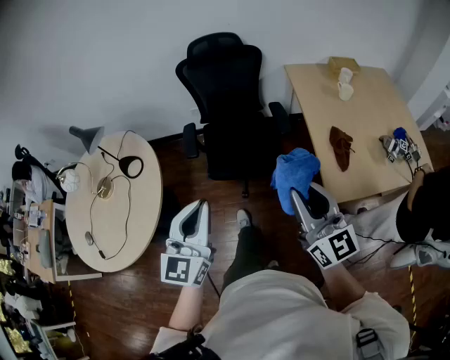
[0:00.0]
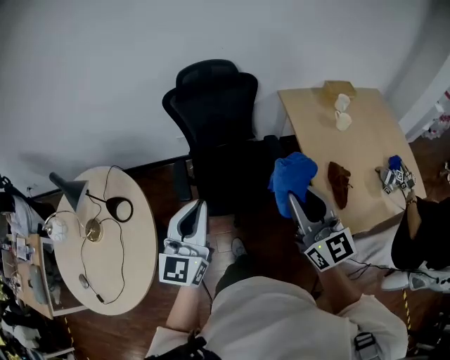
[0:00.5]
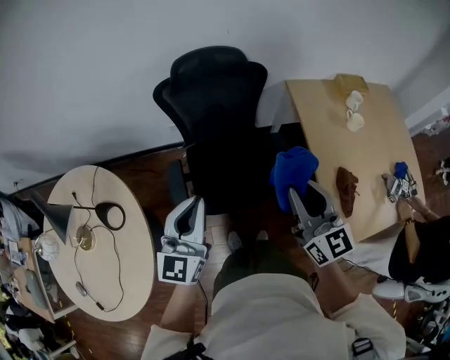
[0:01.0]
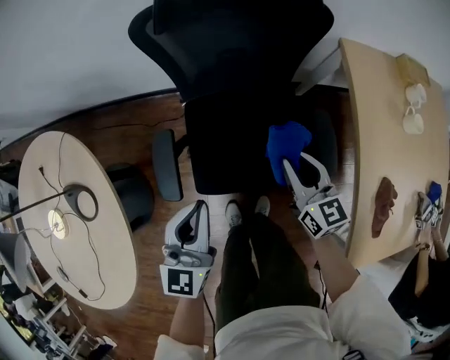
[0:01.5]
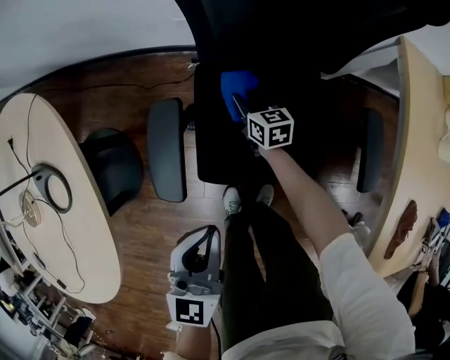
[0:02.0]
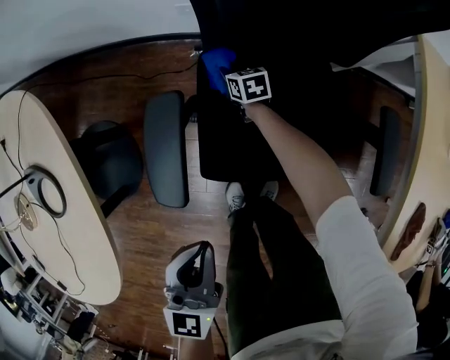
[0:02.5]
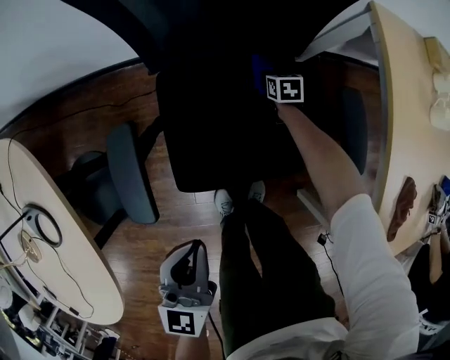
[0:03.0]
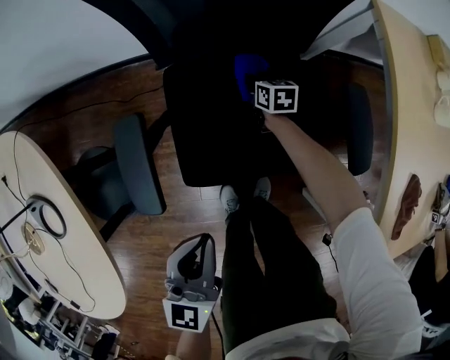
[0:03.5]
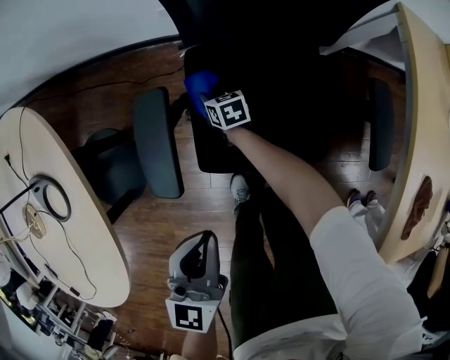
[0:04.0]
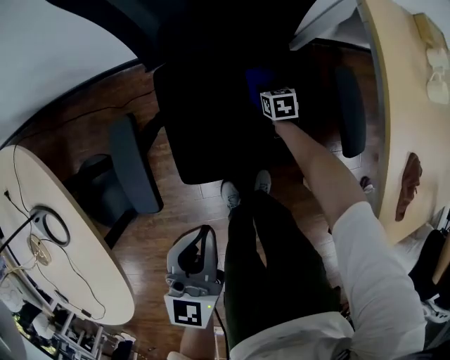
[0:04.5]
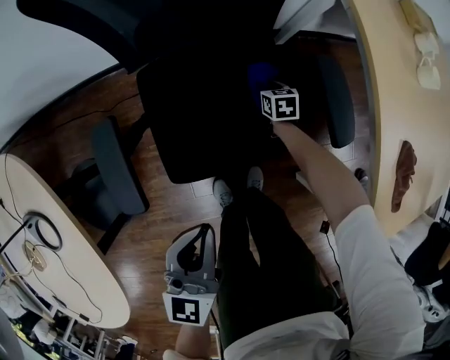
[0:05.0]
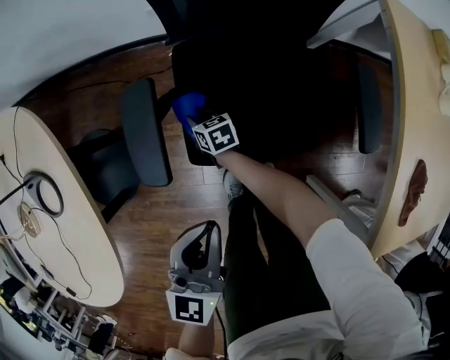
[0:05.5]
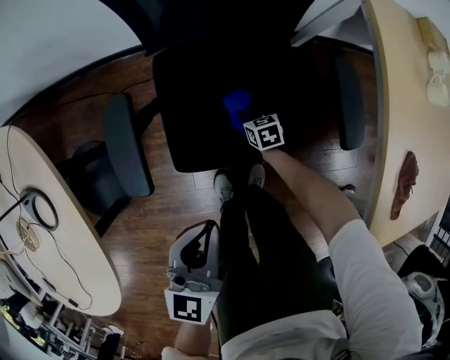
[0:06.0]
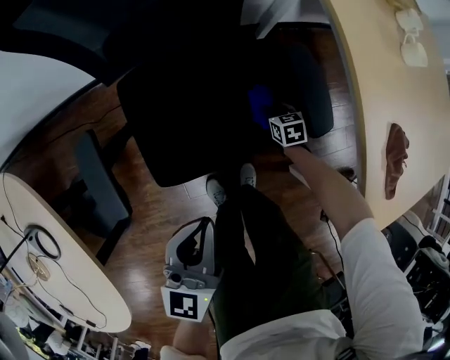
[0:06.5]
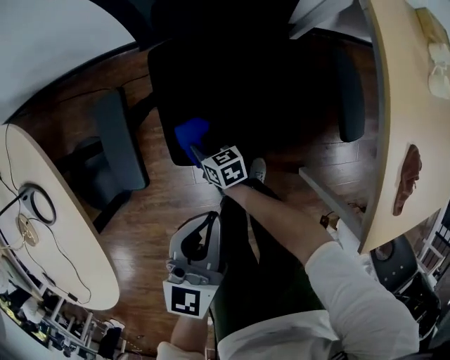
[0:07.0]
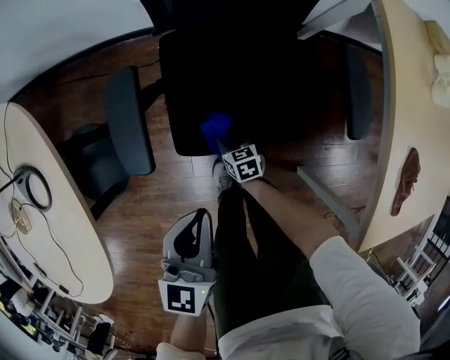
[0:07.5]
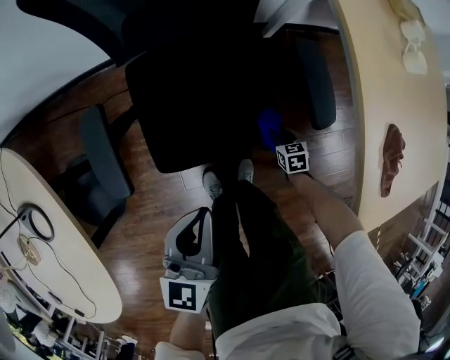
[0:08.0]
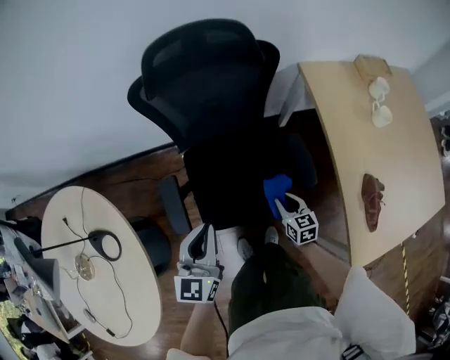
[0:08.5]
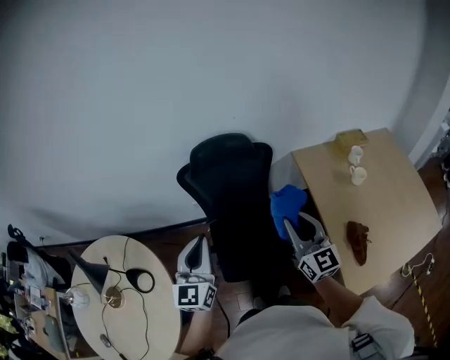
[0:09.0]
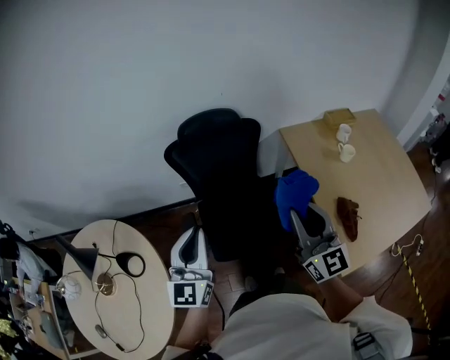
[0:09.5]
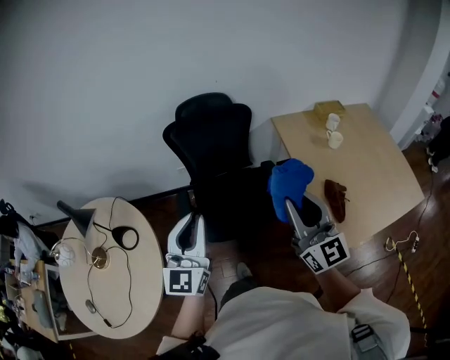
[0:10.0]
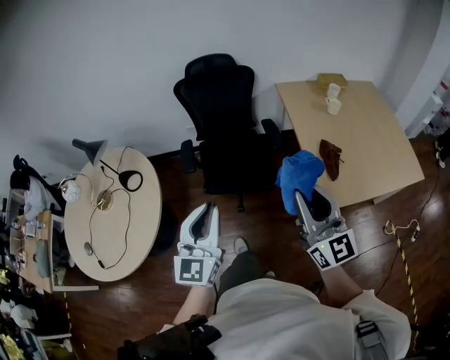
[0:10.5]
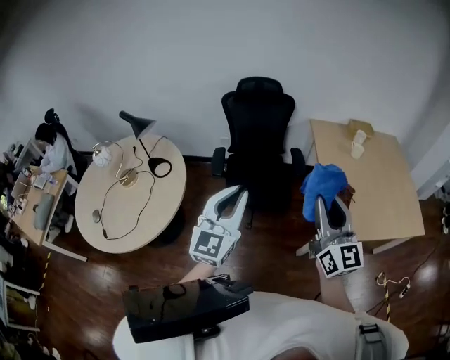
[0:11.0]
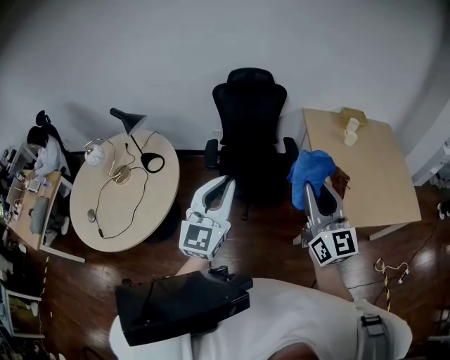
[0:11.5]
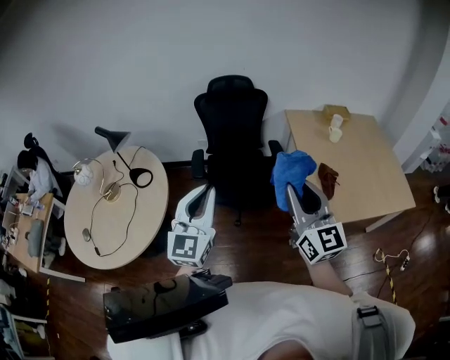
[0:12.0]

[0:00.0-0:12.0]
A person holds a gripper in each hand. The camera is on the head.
0:00.0 to 0:02.0: Both grippers are carried forward, some 70 cm. The left gripper heads downward, covering roughly 50 cm, while the right gripper heads downward, covering approximately 80 cm, and tilts its fingers about 50 degrees downward.
0:02.0 to 0:04.0: The right gripper moves left and right over approximately 30 cm, changing direction 2 times.
0:04.0 to 0:06.0: The right gripper swings left and right, roughly 35 cm each way, with 2 reversals. Meanwhile the left gripper goes left and right, some 10 cm each way, reversing 2 times.
0:06.0 to 0:08.0: The right gripper swings left and right, approximately 35 cm each way, with 2 reversals; the left gripper swings left and right, roughly 10 cm each way, with 2 reversals.
0:08.0 to 0:10.0: The two grippers travel together, backward, roughly 40 cm. The left gripper heads upward, covering roughly 50 cm, and rotates roughly 30 degrees. Meanwhile the right gripper goes approximately 1 m upward, and points its fingers about 80 degrees further upward.
0:10.0 to 0:12.0: Both grippers move backward, roughly 30 cm.

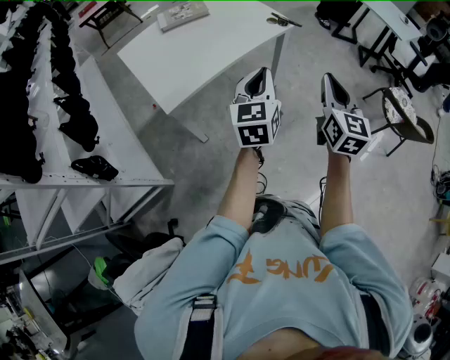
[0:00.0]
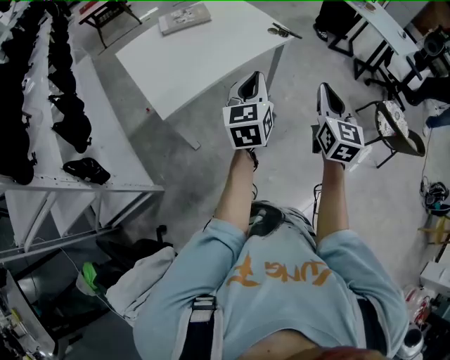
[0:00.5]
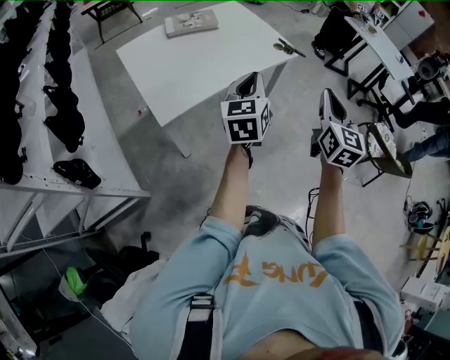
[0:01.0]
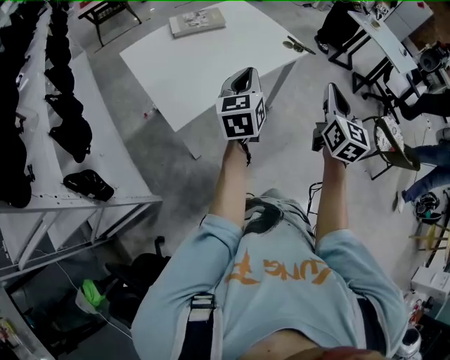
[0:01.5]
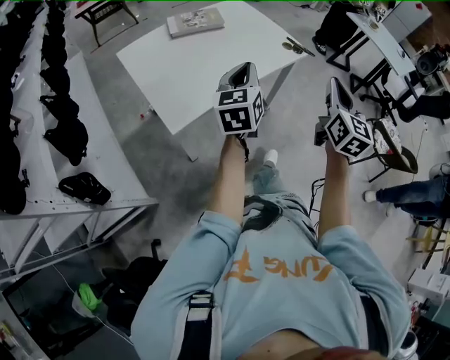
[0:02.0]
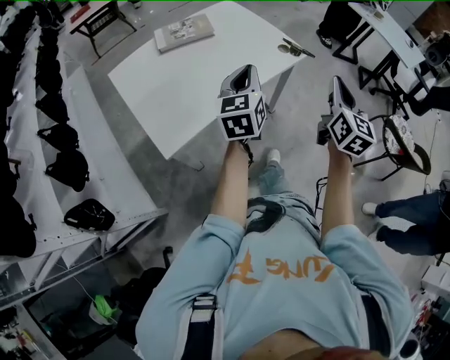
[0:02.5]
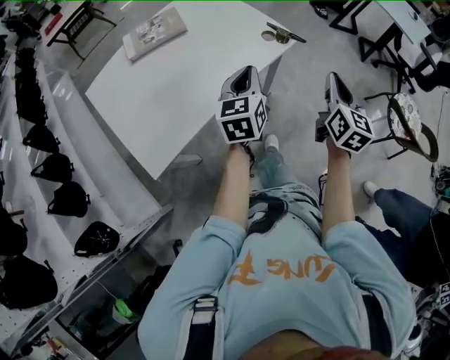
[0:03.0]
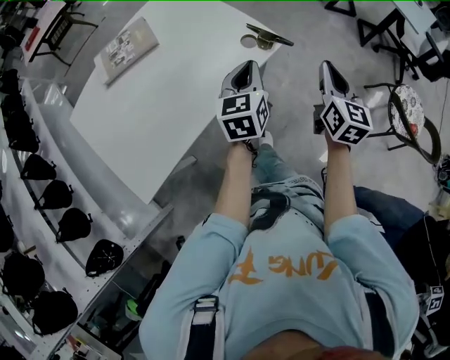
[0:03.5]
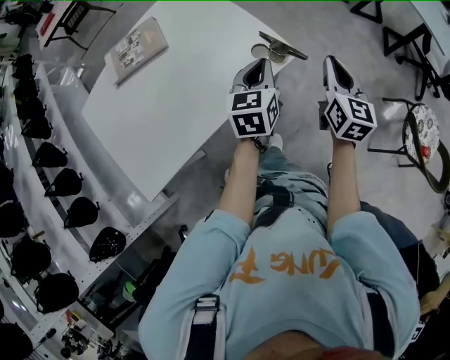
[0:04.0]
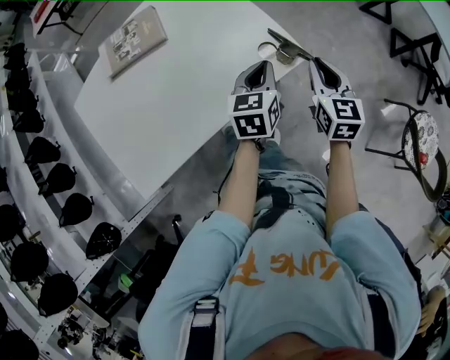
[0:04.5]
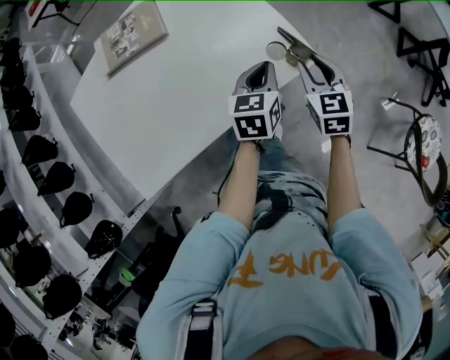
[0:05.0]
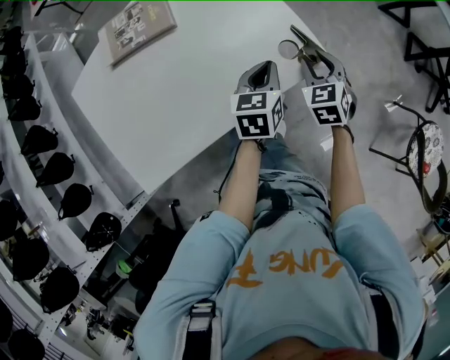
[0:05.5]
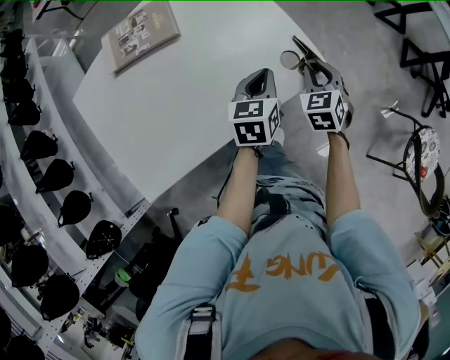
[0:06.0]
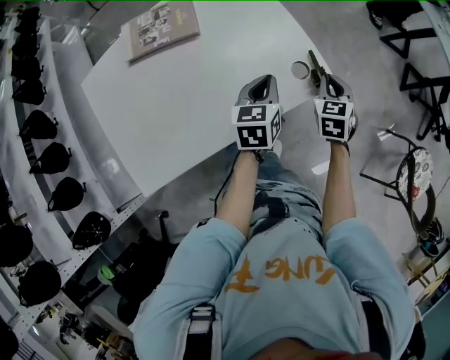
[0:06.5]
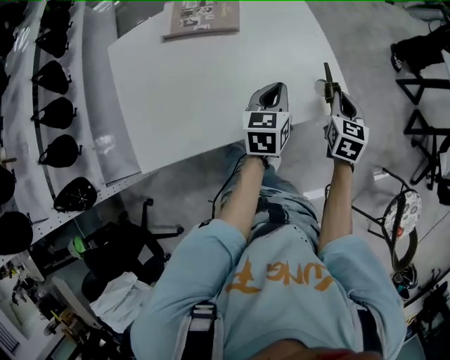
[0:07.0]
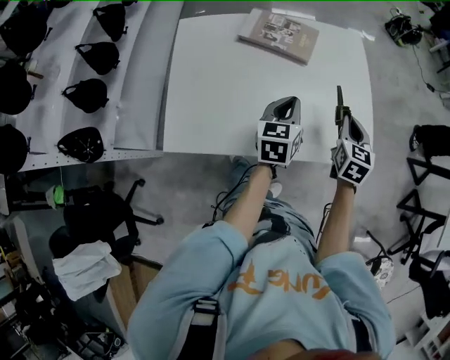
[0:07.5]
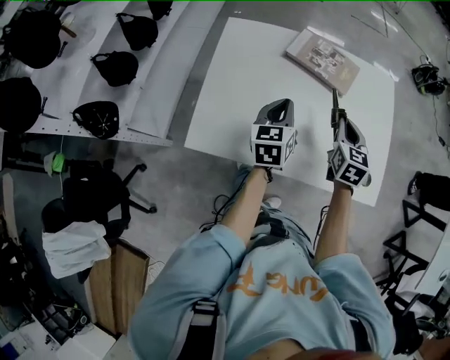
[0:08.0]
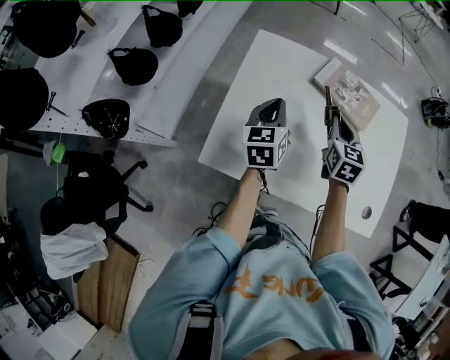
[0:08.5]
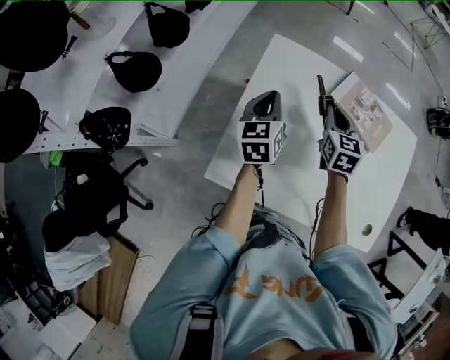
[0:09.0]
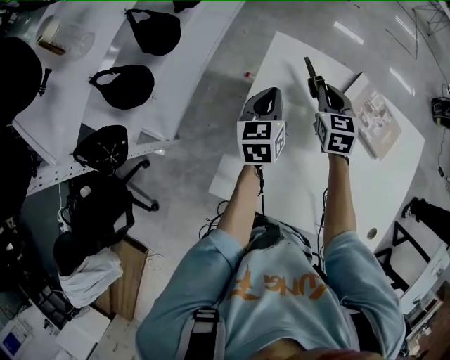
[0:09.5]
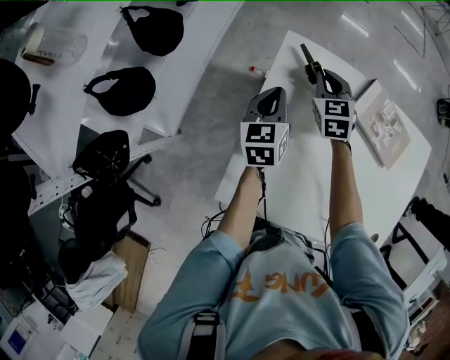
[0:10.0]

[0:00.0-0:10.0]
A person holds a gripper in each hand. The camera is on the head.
0:00.0 to 0:02.0: The left gripper travels to the left and forward by roughly 20 cm; the right gripper shifts roughly 15 cm forward and to the left.
0:02.0 to 0:04.0: The two grippers travel together, forward and to the right, some 40 cm. The left gripper changes its angle by roughly 20 degrees.
0:04.0 to 0:06.0: The left gripper goes some 10 cm downward and to the left. The right gripper heads downward, to the left and forward, covering some 20 cm, and turns by roughly 50 degrees.
0:06.0 to 0:08.0: The right gripper ends up some 35 cm from where it was, and turns by approximately 30 degrees. The left gripper ends up roughly 35 cm from where it was, and rotates about 50 degrees.
0:08.0 to 0:10.0: The left gripper heads to the left and forward, covering about 30 cm; the right gripper moves forward and to the left, approximately 40 cm, and rotates some 30 degrees.

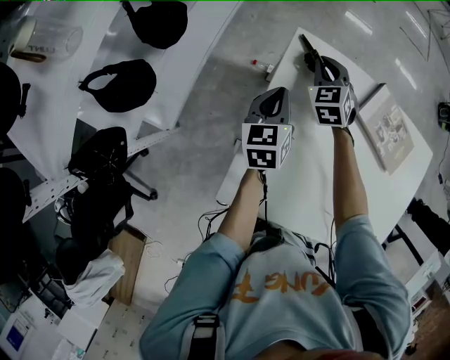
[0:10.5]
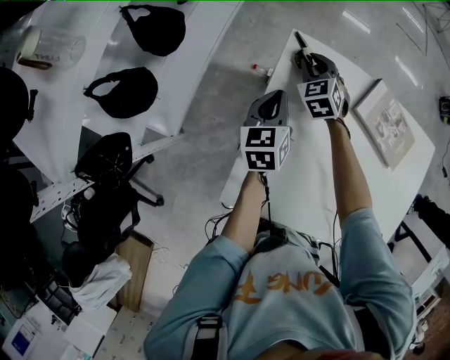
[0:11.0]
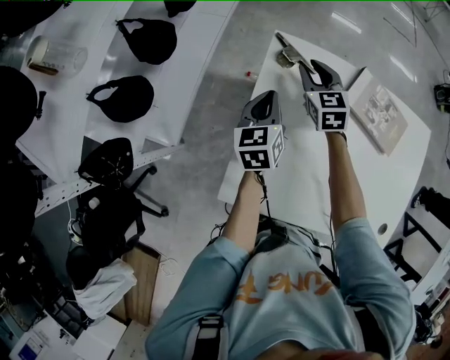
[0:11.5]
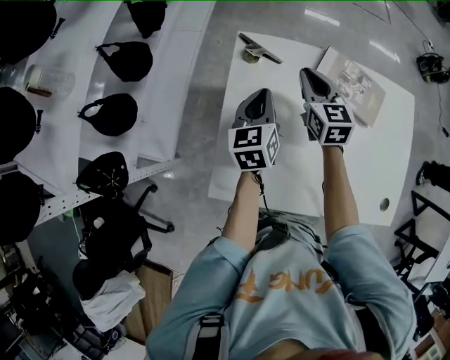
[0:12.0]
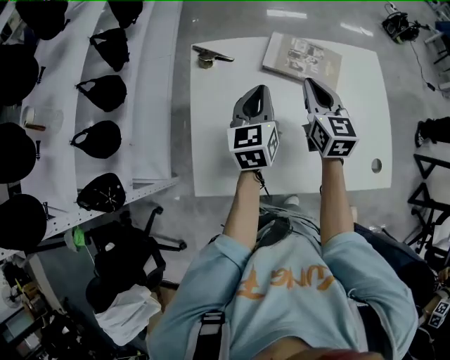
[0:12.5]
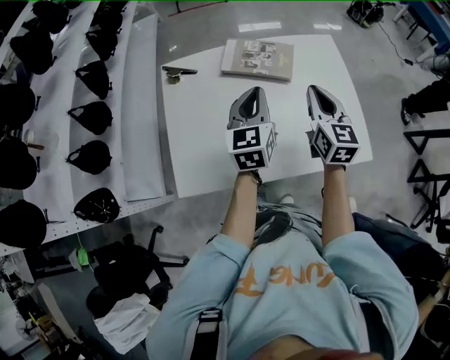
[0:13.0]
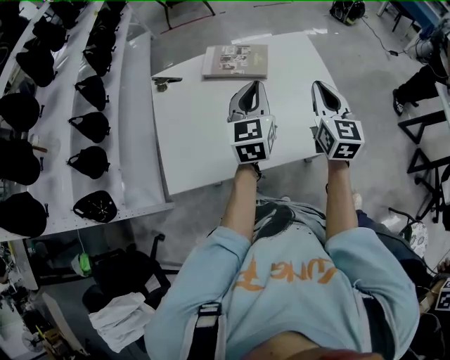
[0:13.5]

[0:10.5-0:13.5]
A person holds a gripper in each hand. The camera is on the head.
0:10.5 to 0:12.0: The right gripper is displaced backward, upward and to the right by roughly 20 cm, and rotates some 40 degrees, while the left gripper travels to the right, upward and backward by about 10 cm.
0:12.0 to 0:13.5: The left gripper travels to the right, backward and upward by about 40 cm, and rotates roughly 30 degrees, while the right gripper is displaced to the right and backward by some 50 cm, and turns by approximately 30 degrees.

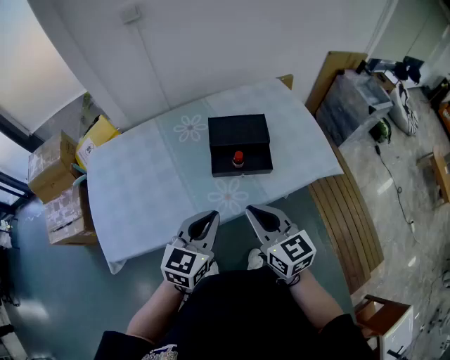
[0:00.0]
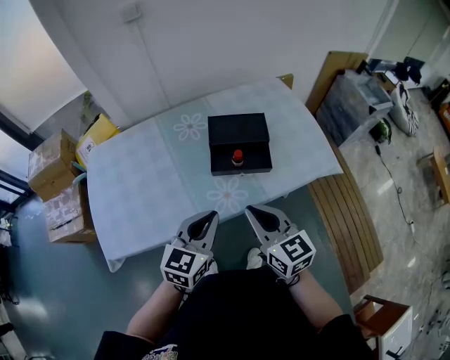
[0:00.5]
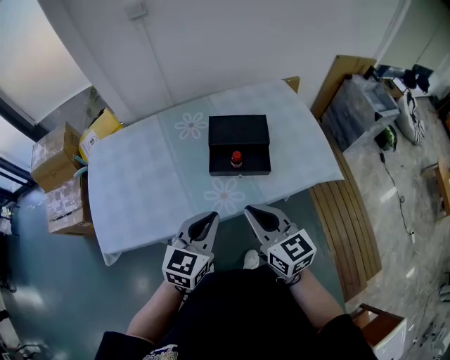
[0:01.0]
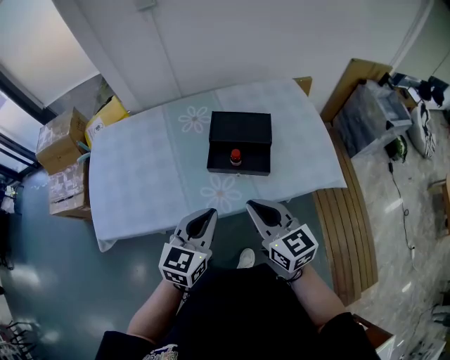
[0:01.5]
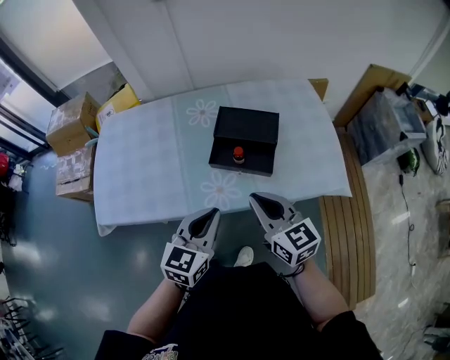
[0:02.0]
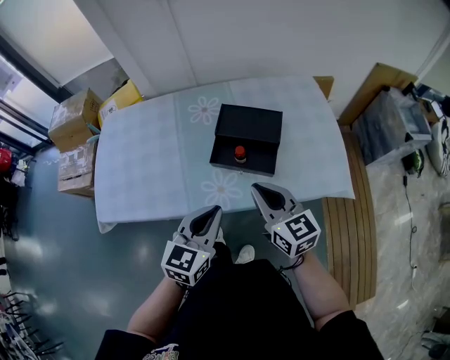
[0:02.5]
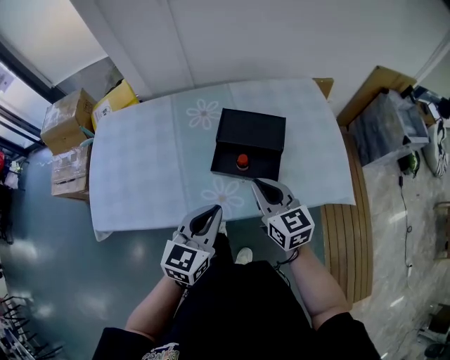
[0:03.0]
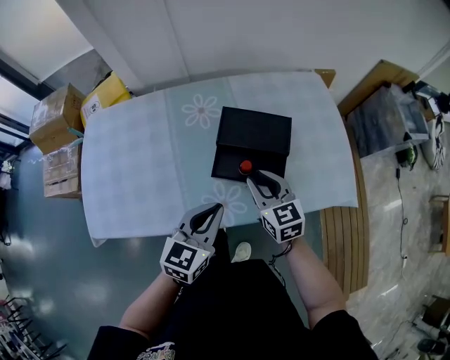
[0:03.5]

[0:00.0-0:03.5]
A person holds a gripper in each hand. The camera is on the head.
0:00.0 to 0:02.0: Both grippers travel together to the right, some 5 cm.
0:02.0 to 0:03.5: The left gripper is displaced forward by roughly 10 cm. Meanwhile the right gripper heads forward and downward, covering some 20 cm, and opens its fingers.
